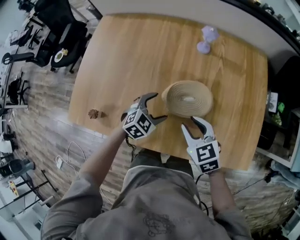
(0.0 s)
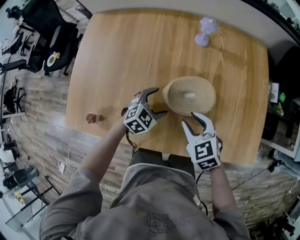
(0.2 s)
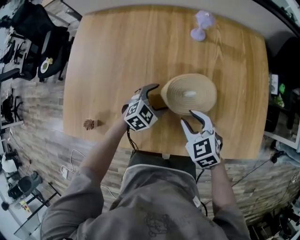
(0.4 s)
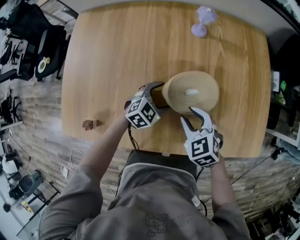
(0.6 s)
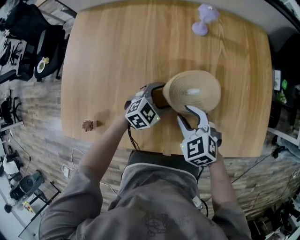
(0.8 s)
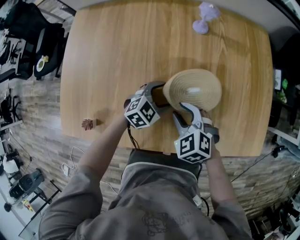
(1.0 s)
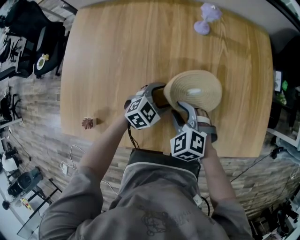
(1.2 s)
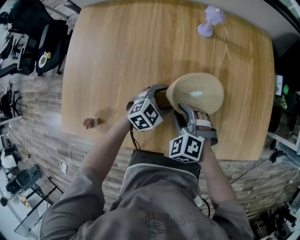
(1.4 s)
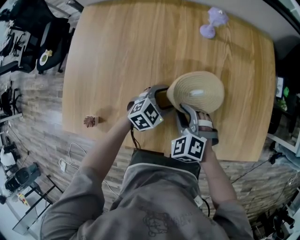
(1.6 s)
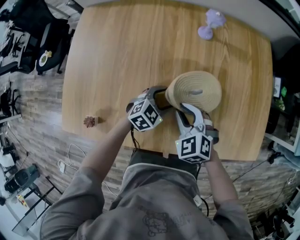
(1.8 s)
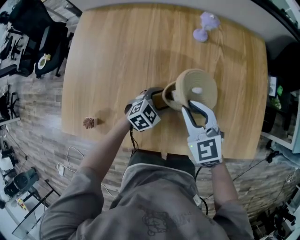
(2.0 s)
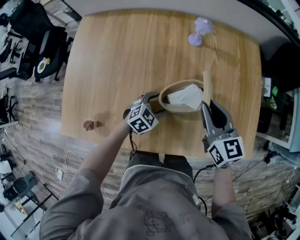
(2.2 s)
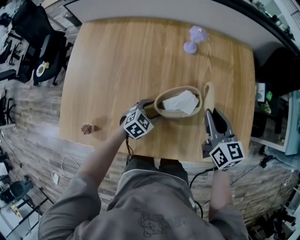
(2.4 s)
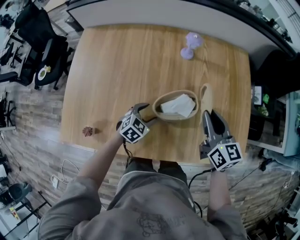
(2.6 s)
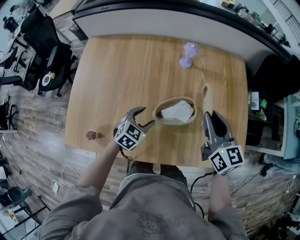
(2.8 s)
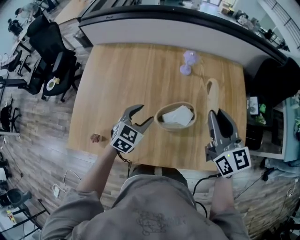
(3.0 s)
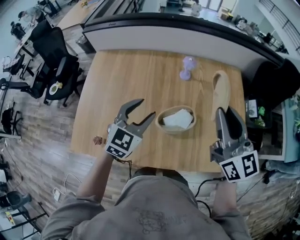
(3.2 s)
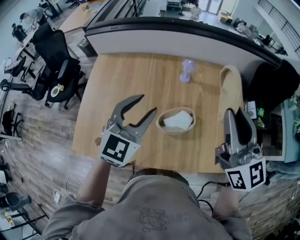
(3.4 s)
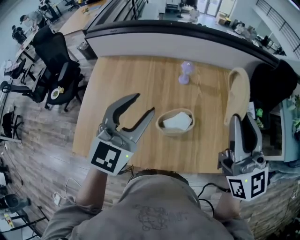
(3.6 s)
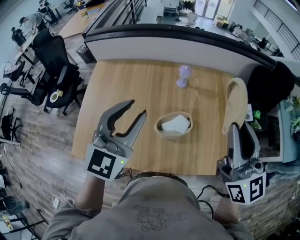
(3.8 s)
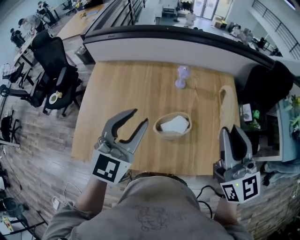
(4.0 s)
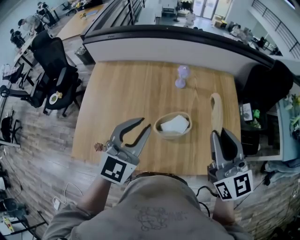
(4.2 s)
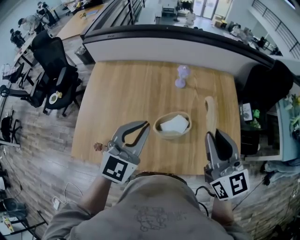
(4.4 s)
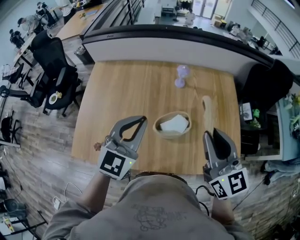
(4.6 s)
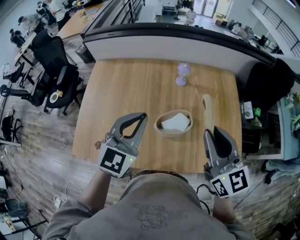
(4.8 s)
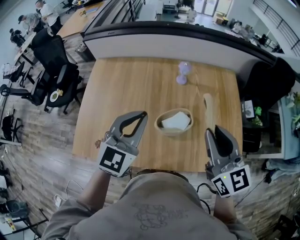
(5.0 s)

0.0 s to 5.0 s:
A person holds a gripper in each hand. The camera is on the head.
0.0 to 1.6 s: The right gripper travels downward and to the left by roughly 10 cm, and rotates approximately 30 degrees; the left gripper shifts about 5 cm downward.
1.6 to 3.4 s: Both grippers travel together upward, approximately 40 cm. The left gripper tips its fingers upward by roughly 30 degrees, while the right gripper tilts its fingers some 60 degrees upward.
3.4 to 5.0 s: The right gripper shifts roughly 5 cm downward; the left gripper closes its fingers.

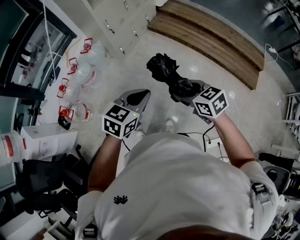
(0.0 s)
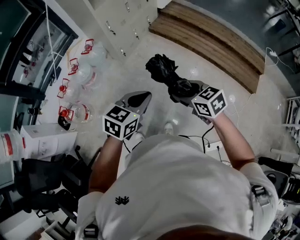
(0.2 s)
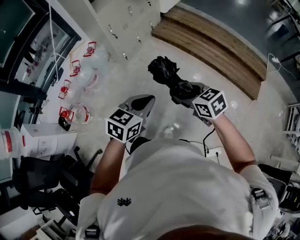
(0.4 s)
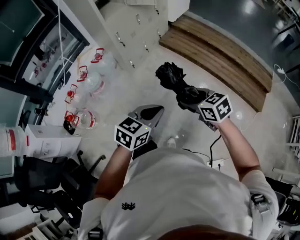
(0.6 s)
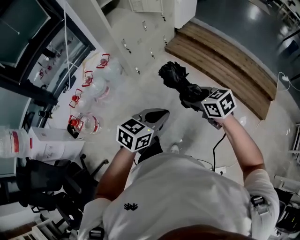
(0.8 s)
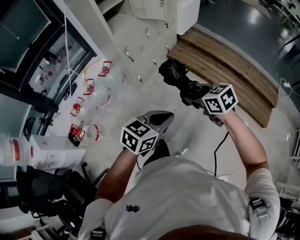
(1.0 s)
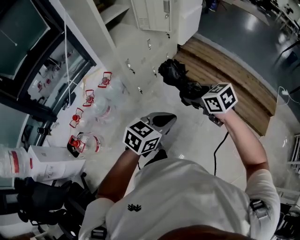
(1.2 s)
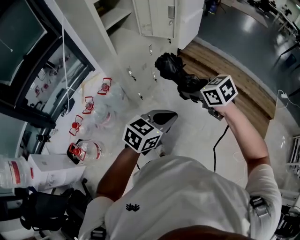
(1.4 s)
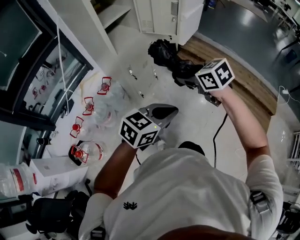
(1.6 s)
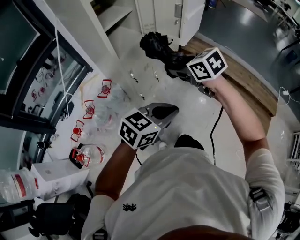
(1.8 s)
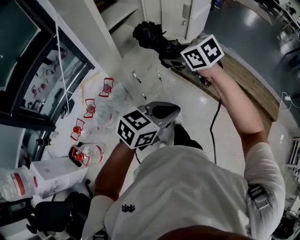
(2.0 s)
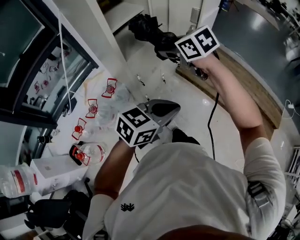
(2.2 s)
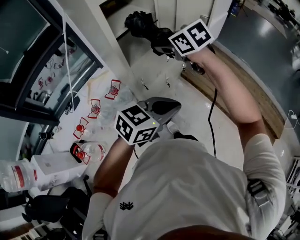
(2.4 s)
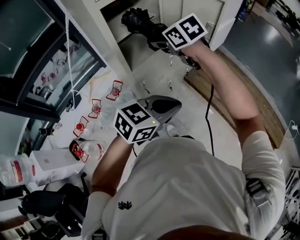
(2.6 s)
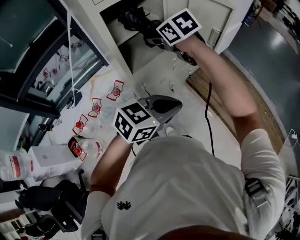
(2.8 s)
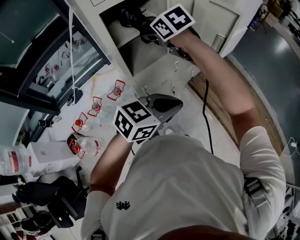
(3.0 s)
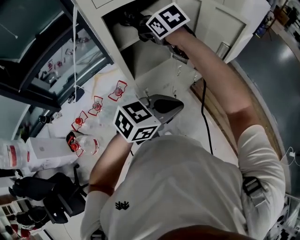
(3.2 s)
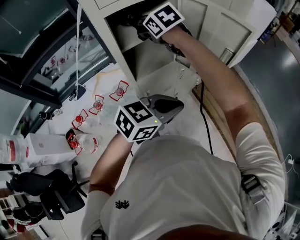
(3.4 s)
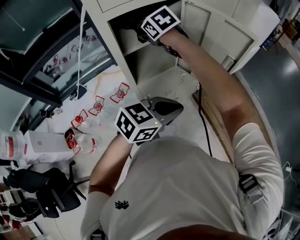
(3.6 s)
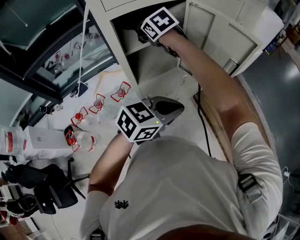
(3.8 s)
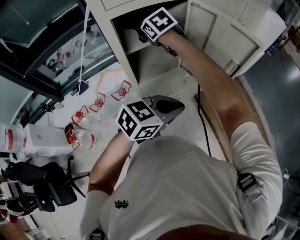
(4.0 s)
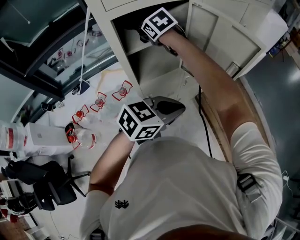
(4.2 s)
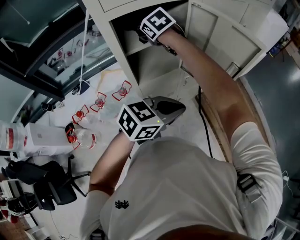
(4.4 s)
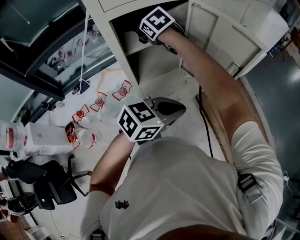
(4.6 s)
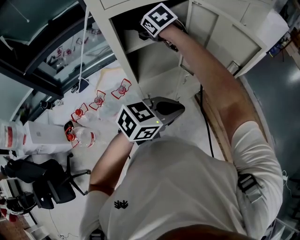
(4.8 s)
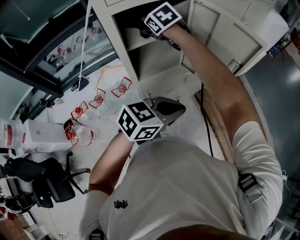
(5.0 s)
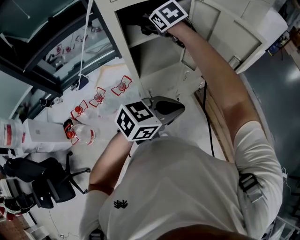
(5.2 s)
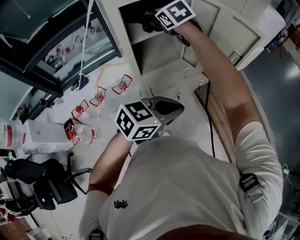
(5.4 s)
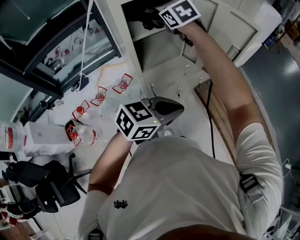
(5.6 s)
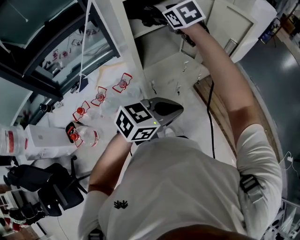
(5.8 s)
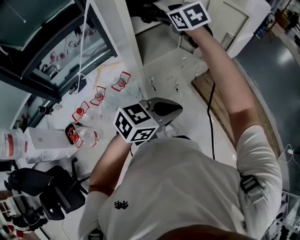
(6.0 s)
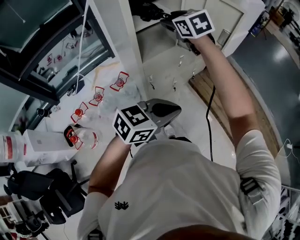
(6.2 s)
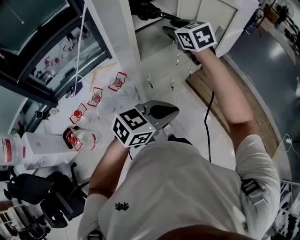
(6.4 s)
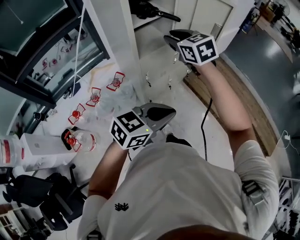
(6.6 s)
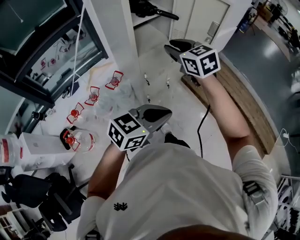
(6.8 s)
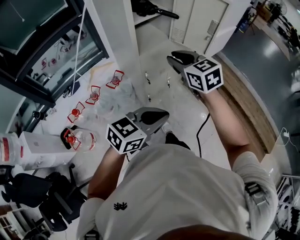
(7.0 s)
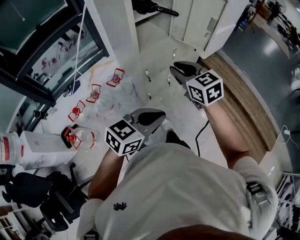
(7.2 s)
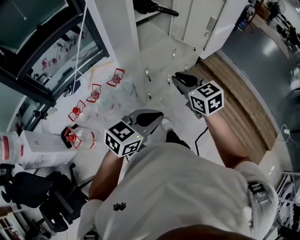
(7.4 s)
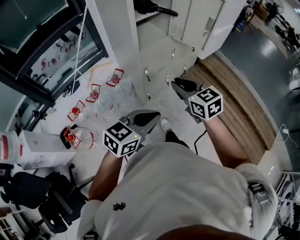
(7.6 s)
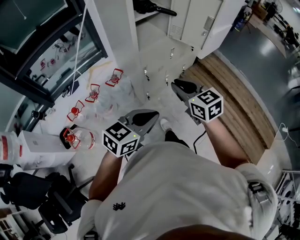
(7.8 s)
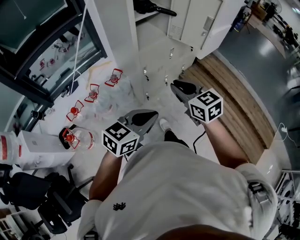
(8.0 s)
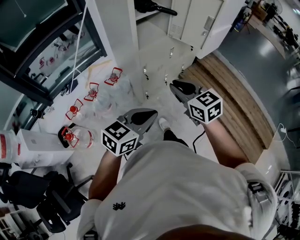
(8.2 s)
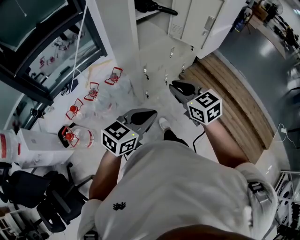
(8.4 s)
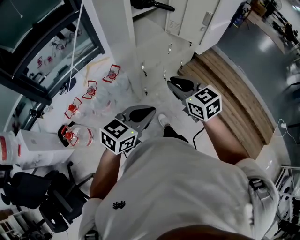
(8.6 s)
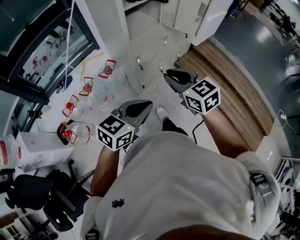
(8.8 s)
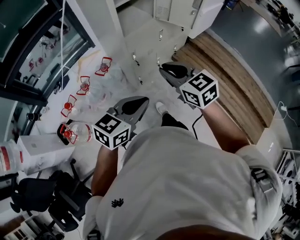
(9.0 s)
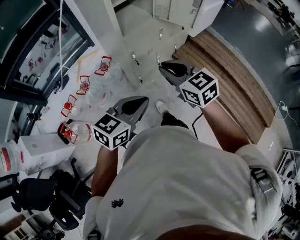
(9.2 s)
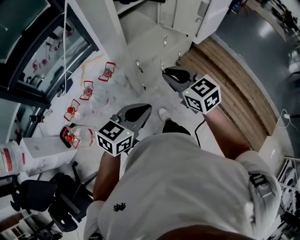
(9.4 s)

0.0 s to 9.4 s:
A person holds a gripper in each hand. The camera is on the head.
0.0 to 1.6 s: Both grippers travel together forward, approximately 35 cm.
1.6 to 3.2 s: The left gripper is displaced forward by approximately 30 cm; the right gripper heads forward and to the left, covering about 50 cm, and swivels approximately 20 degrees.
3.2 to 4.8 s: The right gripper travels to the left and forward by about 10 cm.
4.8 to 6.2 s: The right gripper shifts some 20 cm backward, to the right and upward, and turns by approximately 20 degrees. Meanwhile the left gripper heads backward, covering about 15 cm.
6.2 to 7.8 s: The right gripper heads backward and downward, covering approximately 35 cm, and closes its fingers. The left gripper moves backward and to the left, approximately 15 cm.
7.8 to 9.4 s: The grippers stay close to where they were, moving slightly.

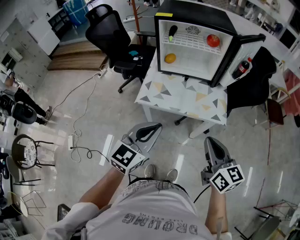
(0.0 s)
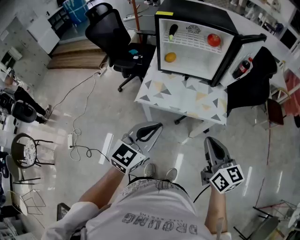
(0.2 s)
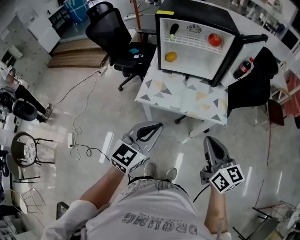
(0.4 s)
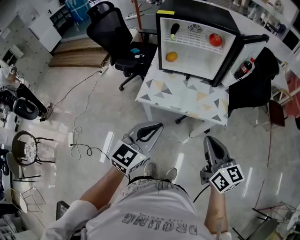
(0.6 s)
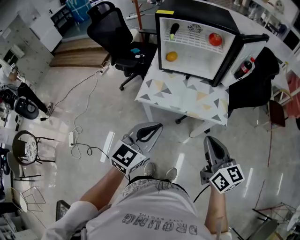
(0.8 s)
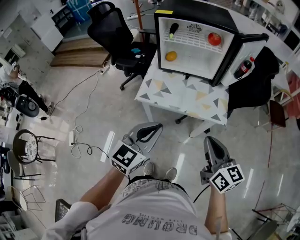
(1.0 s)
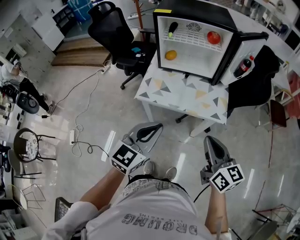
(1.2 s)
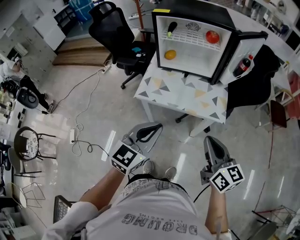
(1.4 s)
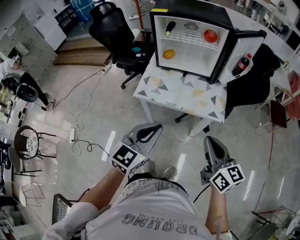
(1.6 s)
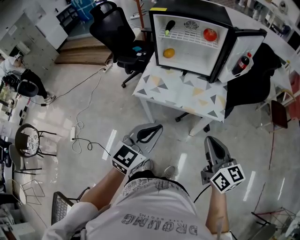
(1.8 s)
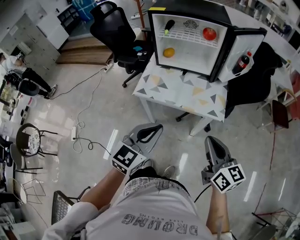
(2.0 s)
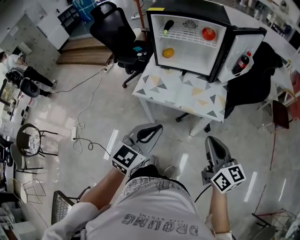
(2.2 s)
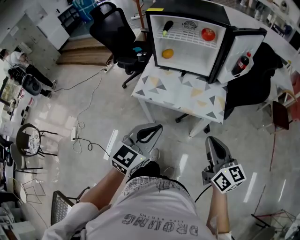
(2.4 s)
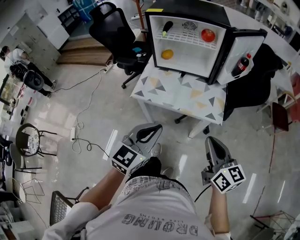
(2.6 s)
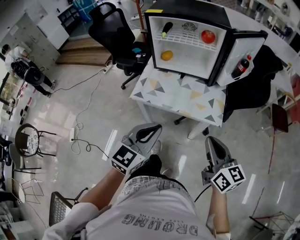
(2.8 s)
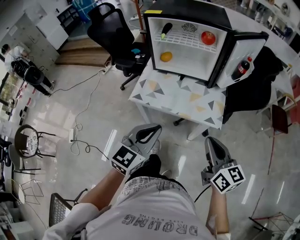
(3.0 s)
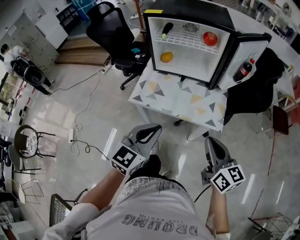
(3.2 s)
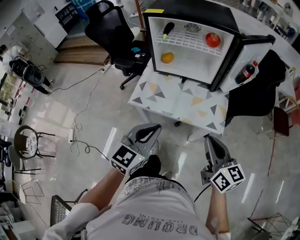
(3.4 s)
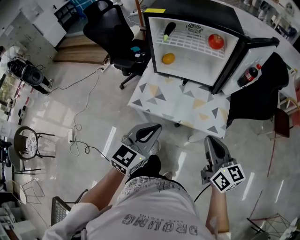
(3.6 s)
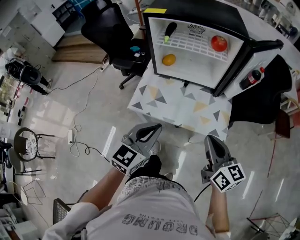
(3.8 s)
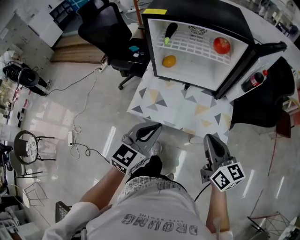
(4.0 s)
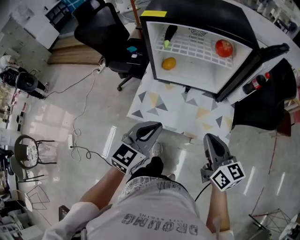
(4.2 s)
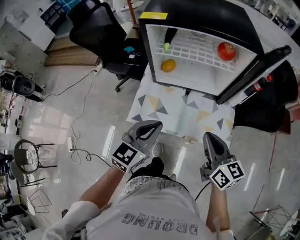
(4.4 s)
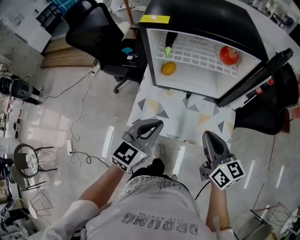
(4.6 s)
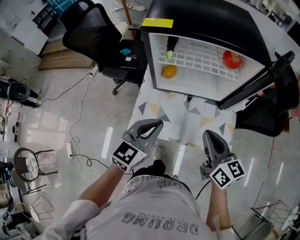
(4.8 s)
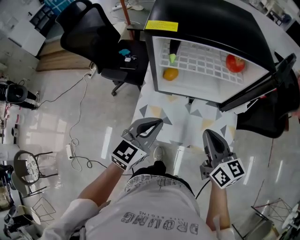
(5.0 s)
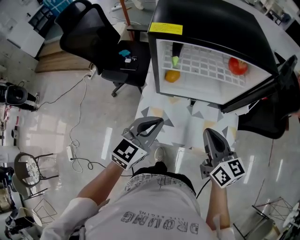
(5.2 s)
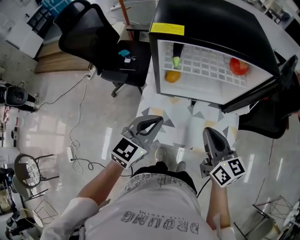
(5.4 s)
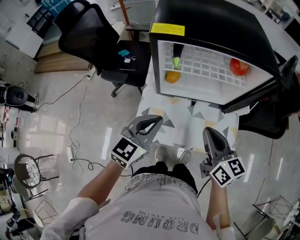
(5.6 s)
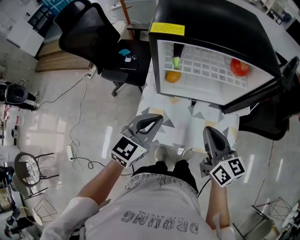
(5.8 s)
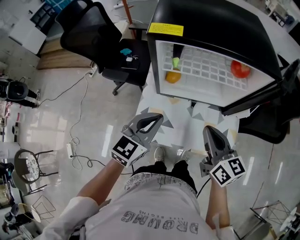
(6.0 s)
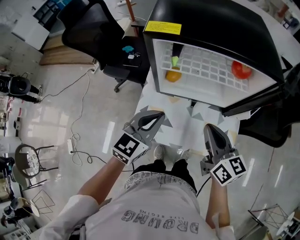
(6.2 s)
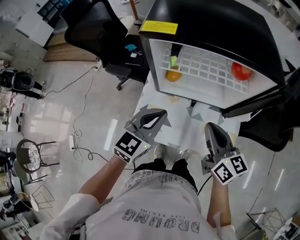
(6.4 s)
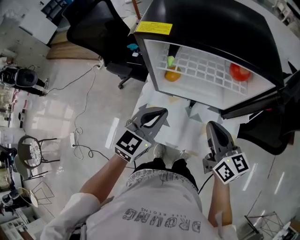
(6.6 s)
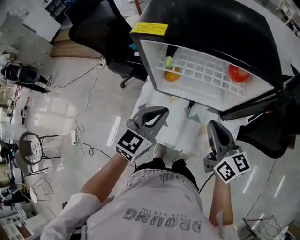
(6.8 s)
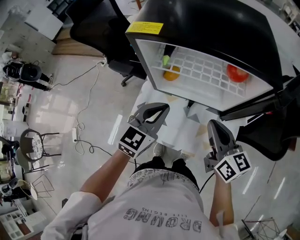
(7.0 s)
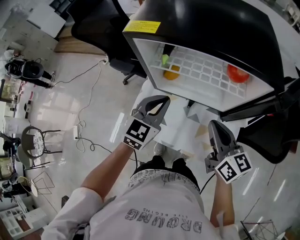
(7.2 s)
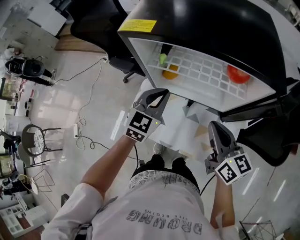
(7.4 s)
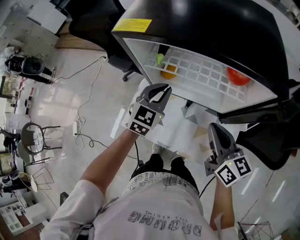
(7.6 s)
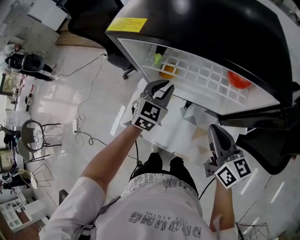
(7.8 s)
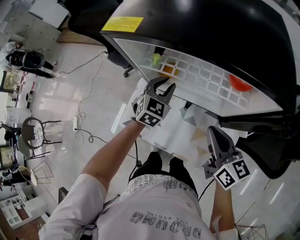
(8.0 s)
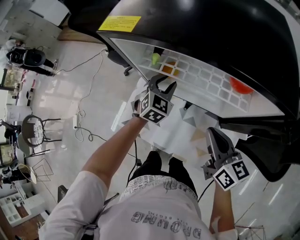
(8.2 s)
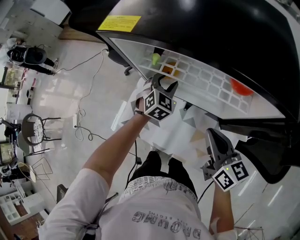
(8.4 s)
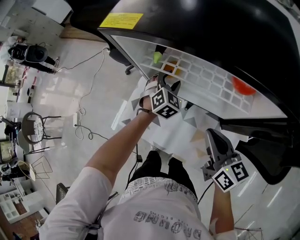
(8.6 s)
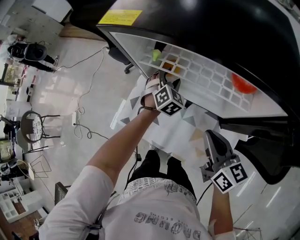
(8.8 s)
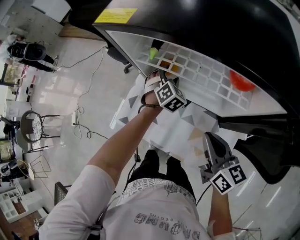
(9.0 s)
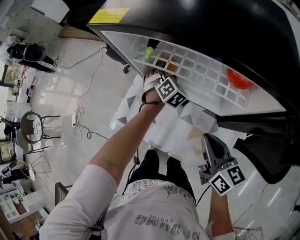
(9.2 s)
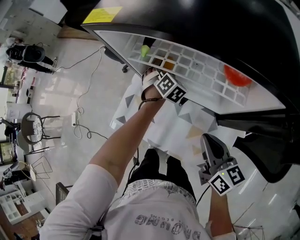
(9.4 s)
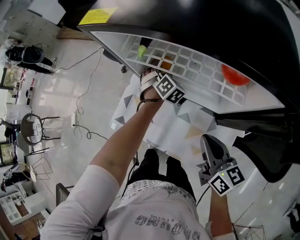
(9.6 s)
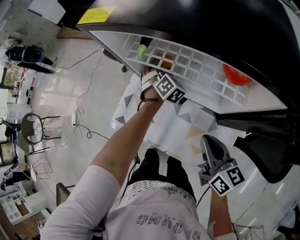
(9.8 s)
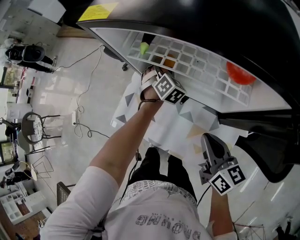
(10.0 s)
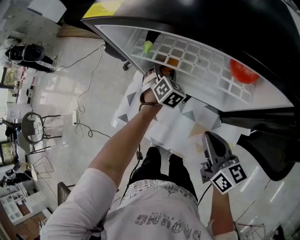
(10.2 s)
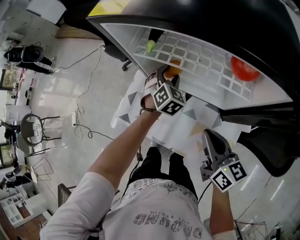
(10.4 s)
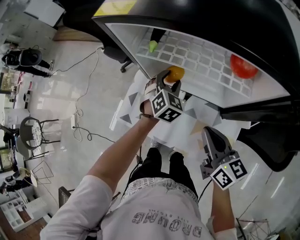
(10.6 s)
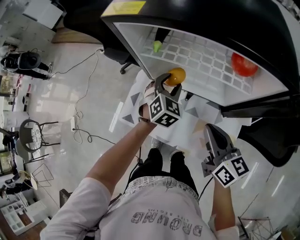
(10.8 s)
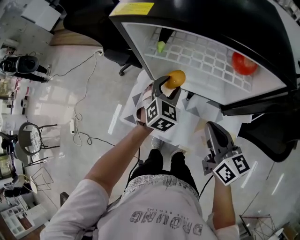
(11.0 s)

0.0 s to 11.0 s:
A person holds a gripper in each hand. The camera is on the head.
0.0 to 1.6 s: The left gripper moves to the right, roughly 5 cm.
1.6 to 3.2 s: Both grippers travel together forward, some 5 cm.
3.2 to 4.8 s: The right gripper goes approximately 25 cm forward and to the left; the left gripper shifts some 20 cm forward.
4.8 to 6.2 s: The two grippers go roughly 5 cm forward.
6.2 to 7.8 s: The right gripper shifts some 10 cm to the right and forward, while the left gripper shifts approximately 20 cm forward, downward and to the right, and turns by roughly 20 degrees.
7.8 to 9.4 s: The left gripper heads downward and forward, covering roughly 15 cm, swivels some 40 degrees, and opens up, while the right gripper shifts by about 5 cm.
9.4 to 11.0 s: The left gripper is displaced backward and upward by roughly 15 cm, and swivels some 30 degrees, while the right gripper changes place by approximately 5 cm.
